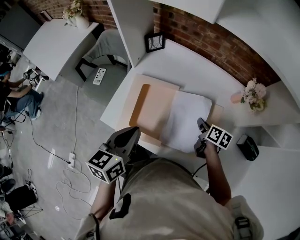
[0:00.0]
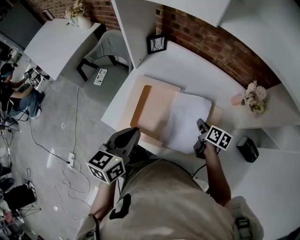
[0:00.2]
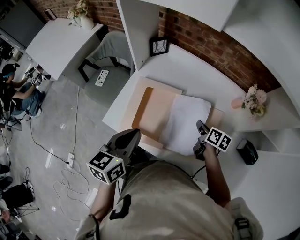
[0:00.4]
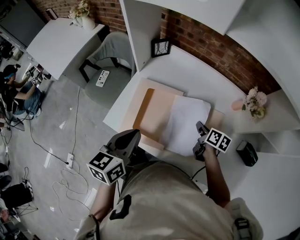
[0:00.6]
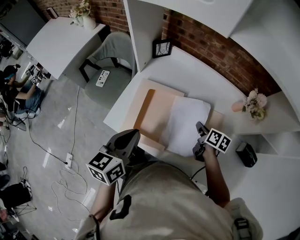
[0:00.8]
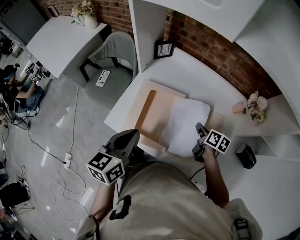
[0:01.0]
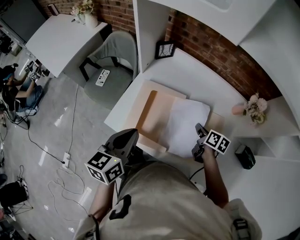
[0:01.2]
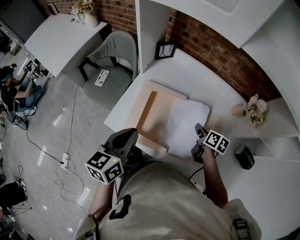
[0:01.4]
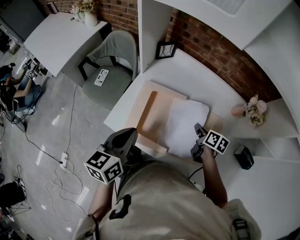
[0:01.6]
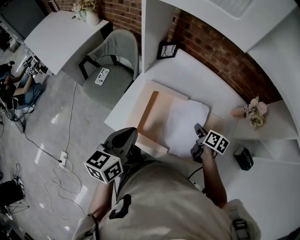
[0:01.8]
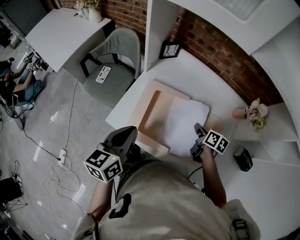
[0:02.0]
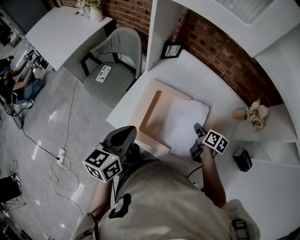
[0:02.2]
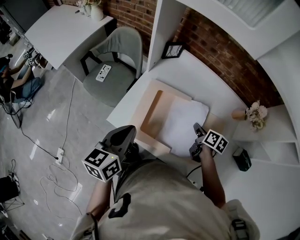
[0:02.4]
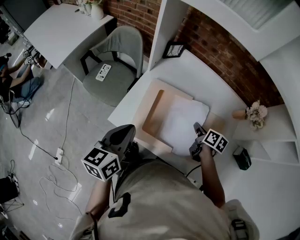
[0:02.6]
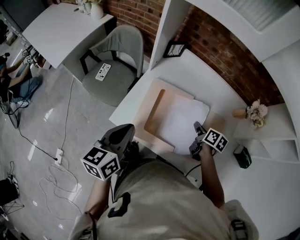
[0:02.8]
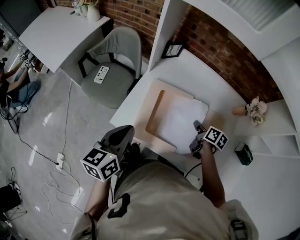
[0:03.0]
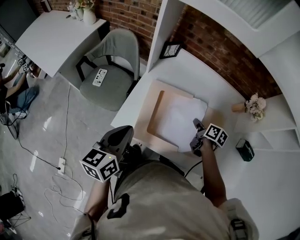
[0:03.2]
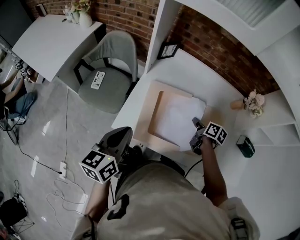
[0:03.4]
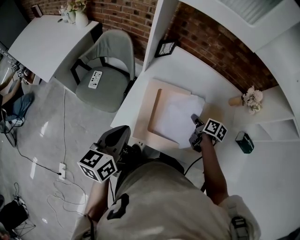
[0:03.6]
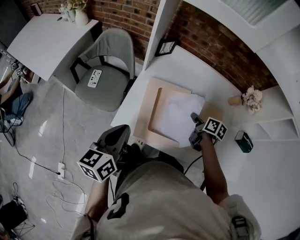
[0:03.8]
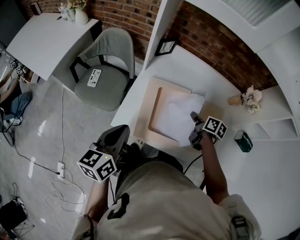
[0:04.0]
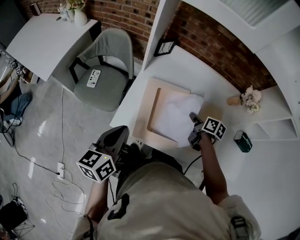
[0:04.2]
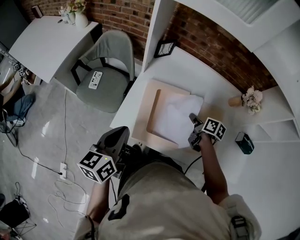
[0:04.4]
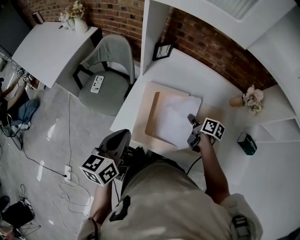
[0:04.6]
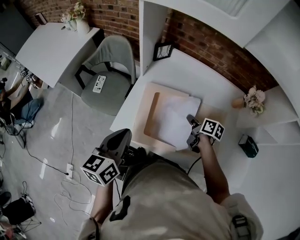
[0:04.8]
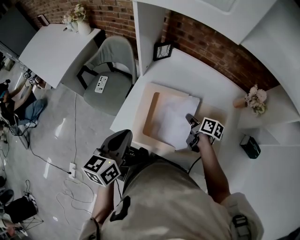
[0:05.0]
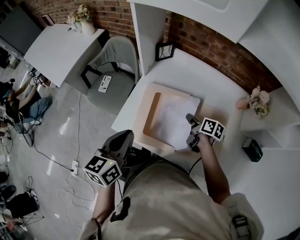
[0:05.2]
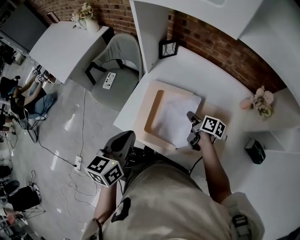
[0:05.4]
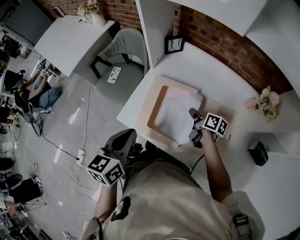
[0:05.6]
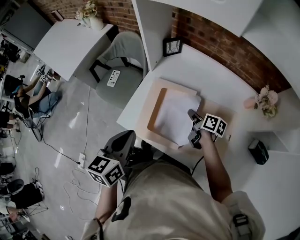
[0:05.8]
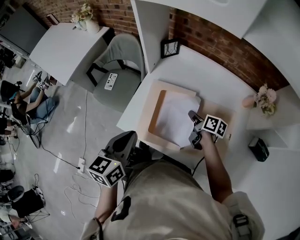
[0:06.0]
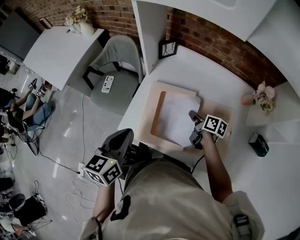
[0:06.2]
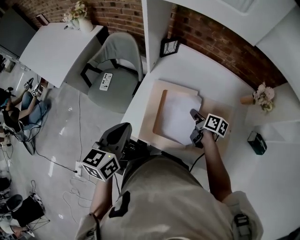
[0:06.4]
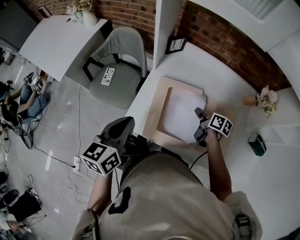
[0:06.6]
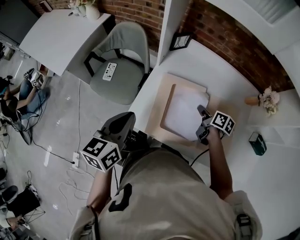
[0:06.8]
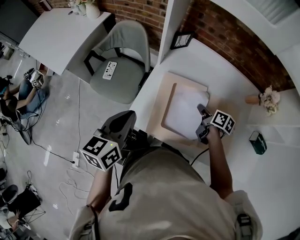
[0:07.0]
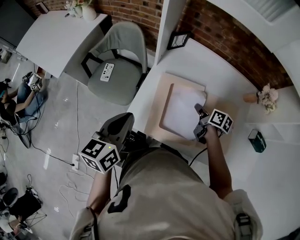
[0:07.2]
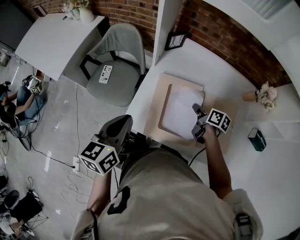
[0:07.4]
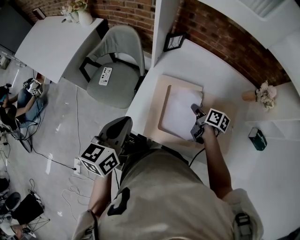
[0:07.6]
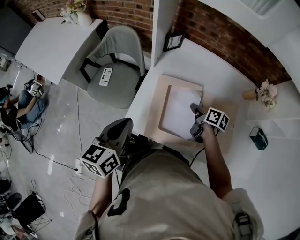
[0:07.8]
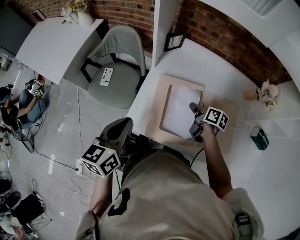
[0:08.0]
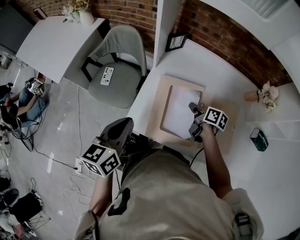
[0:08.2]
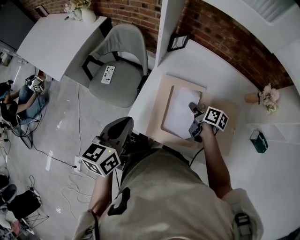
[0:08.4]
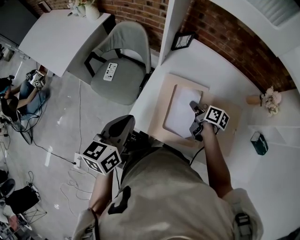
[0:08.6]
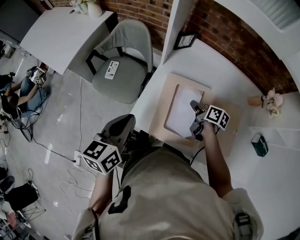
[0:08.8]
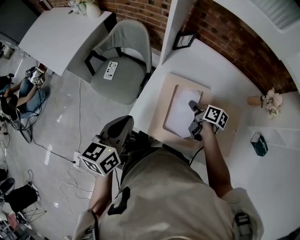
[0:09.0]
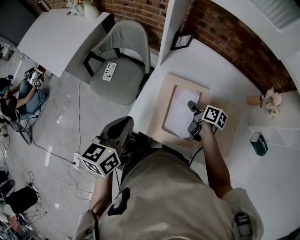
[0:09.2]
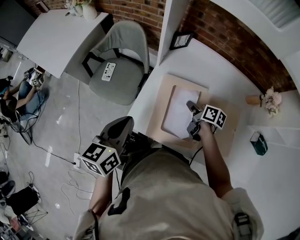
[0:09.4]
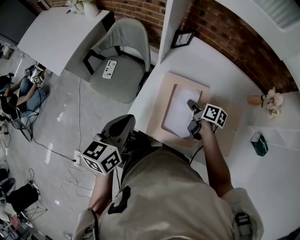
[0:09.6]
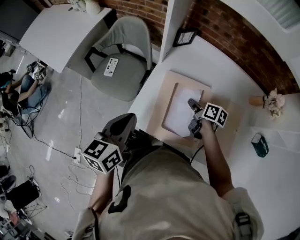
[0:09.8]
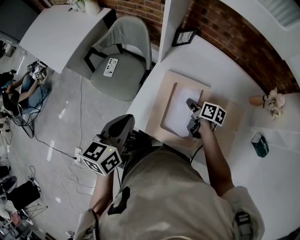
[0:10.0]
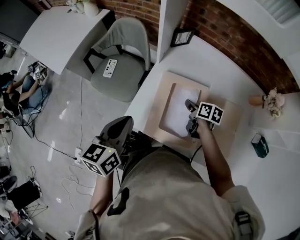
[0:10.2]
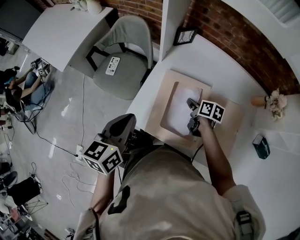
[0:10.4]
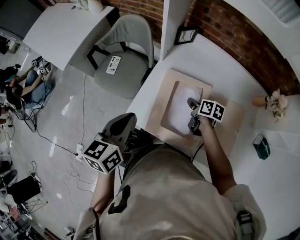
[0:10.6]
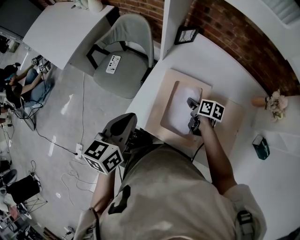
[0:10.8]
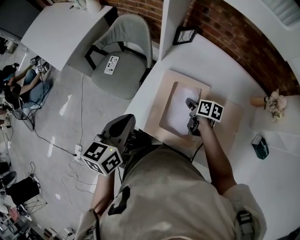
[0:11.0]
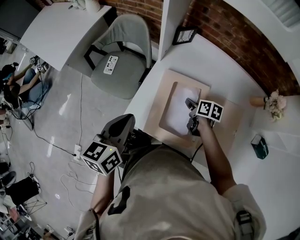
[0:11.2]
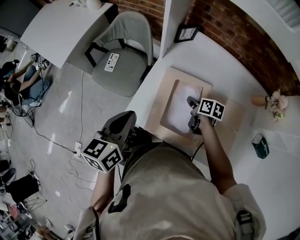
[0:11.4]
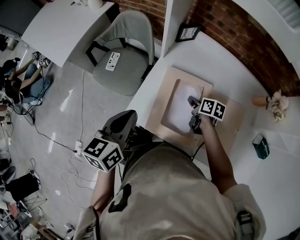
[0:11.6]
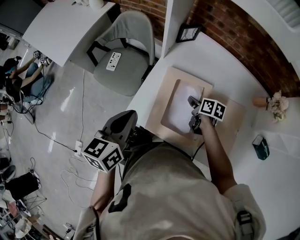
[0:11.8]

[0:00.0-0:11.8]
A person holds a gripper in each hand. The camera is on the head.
0:00.0 to 0:01.4: The left gripper travels to the left by about 5 cm.
0:01.4 to 0:03.0: The left gripper shifts about 10 cm to the left, while the right gripper shifts by approximately 5 cm.
0:03.0 to 0:04.4: The grippers stay close to where they were, moving slightly.
0:04.4 to 0:06.0: The left gripper shifts about 5 cm to the right.
0:06.0 to 0:07.4: The left gripper travels to the left by approximately 10 cm.
0:07.4 to 0:08.8: The grippers stay close to where they were, moving slightly.
0:08.8 to 0:10.4: There are only small adjustments of the grippers.
0:10.4 to 0:11.8: Neither gripper changes place.

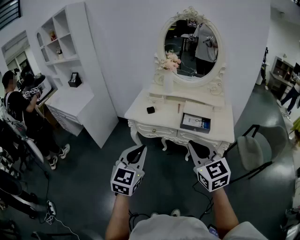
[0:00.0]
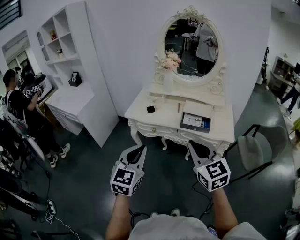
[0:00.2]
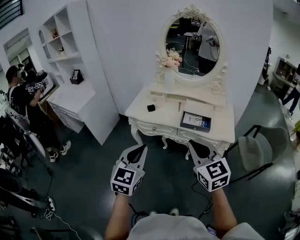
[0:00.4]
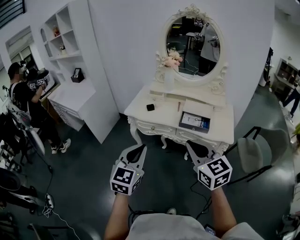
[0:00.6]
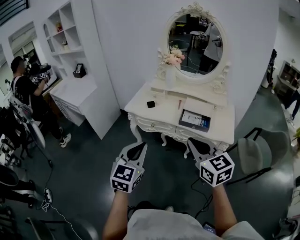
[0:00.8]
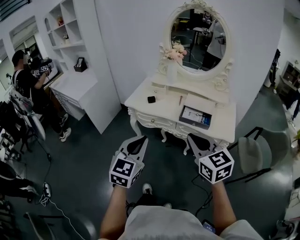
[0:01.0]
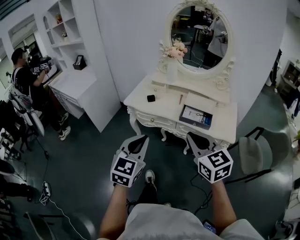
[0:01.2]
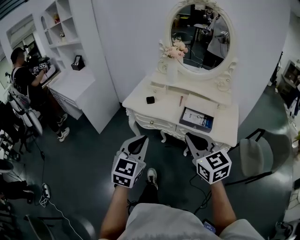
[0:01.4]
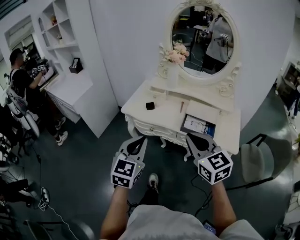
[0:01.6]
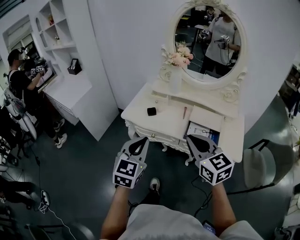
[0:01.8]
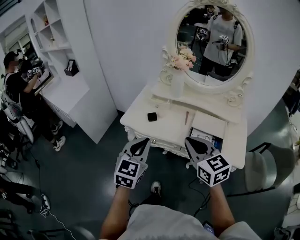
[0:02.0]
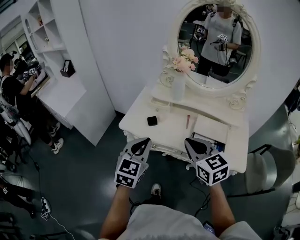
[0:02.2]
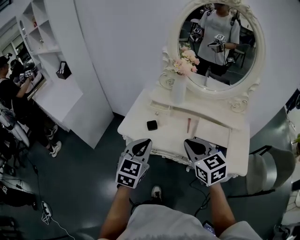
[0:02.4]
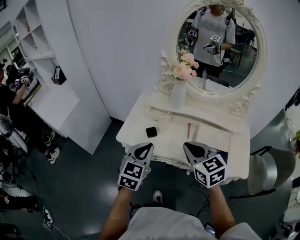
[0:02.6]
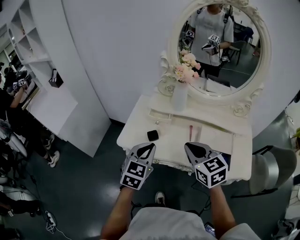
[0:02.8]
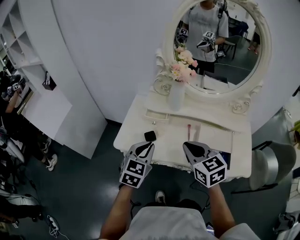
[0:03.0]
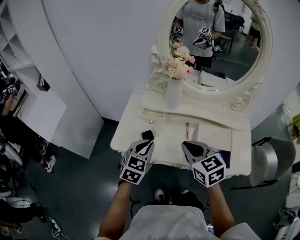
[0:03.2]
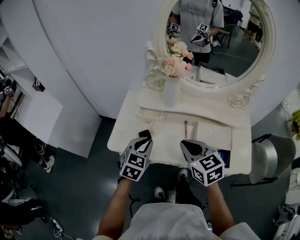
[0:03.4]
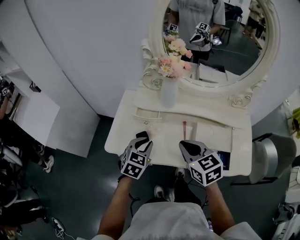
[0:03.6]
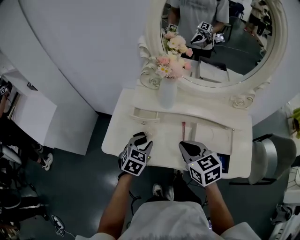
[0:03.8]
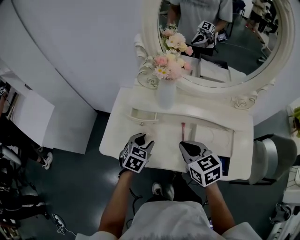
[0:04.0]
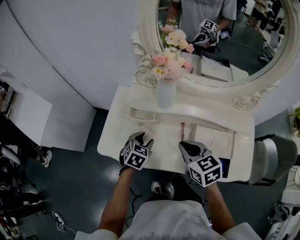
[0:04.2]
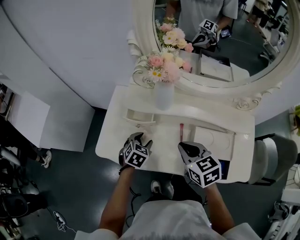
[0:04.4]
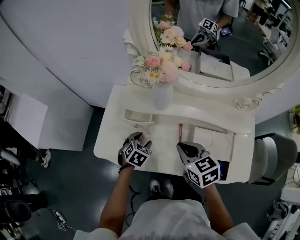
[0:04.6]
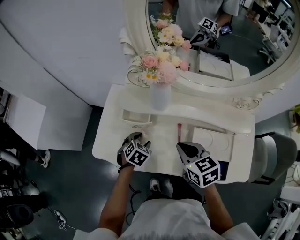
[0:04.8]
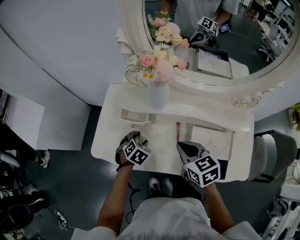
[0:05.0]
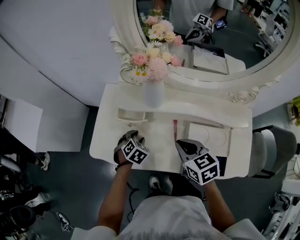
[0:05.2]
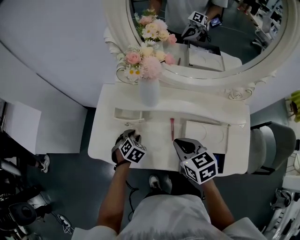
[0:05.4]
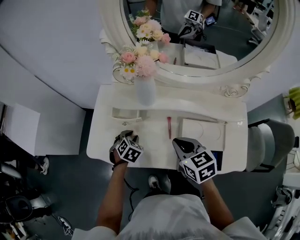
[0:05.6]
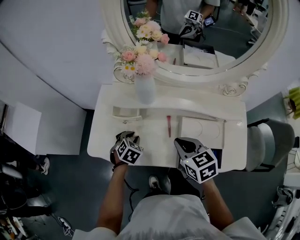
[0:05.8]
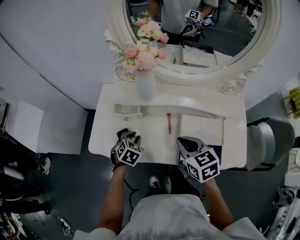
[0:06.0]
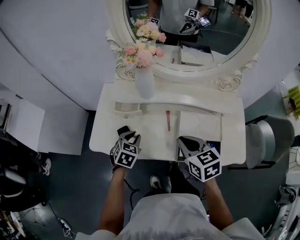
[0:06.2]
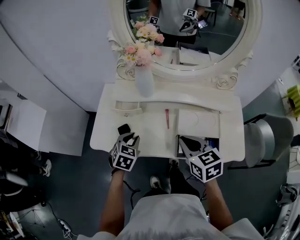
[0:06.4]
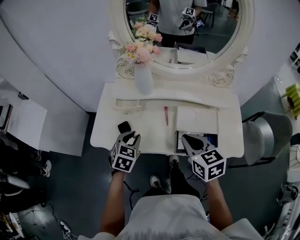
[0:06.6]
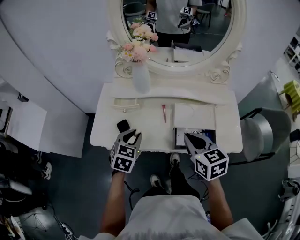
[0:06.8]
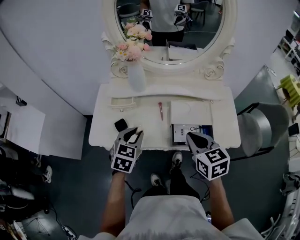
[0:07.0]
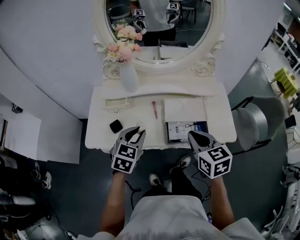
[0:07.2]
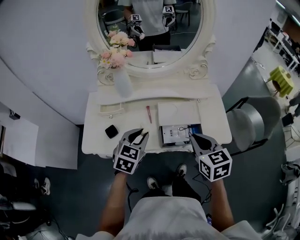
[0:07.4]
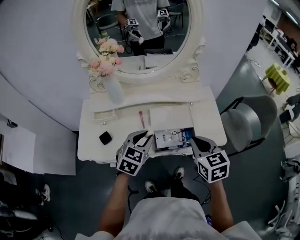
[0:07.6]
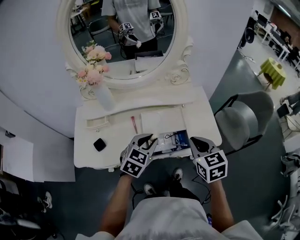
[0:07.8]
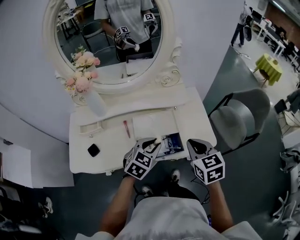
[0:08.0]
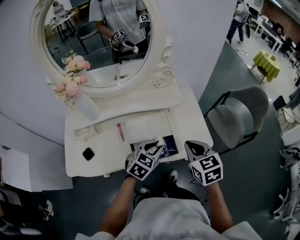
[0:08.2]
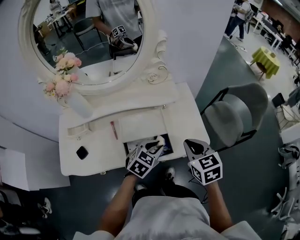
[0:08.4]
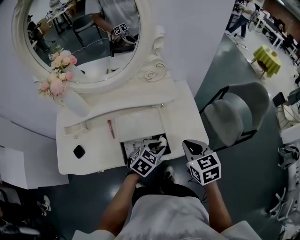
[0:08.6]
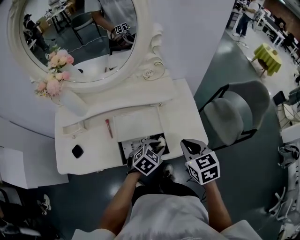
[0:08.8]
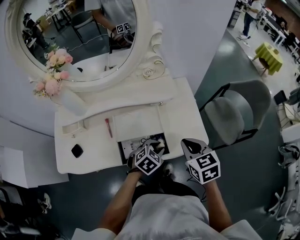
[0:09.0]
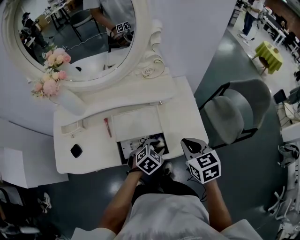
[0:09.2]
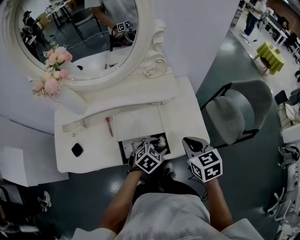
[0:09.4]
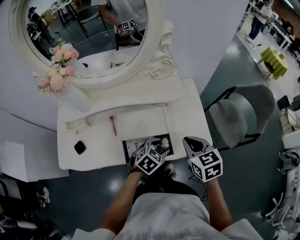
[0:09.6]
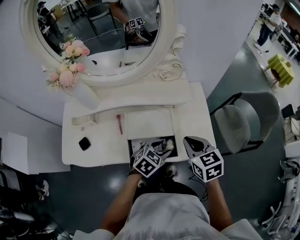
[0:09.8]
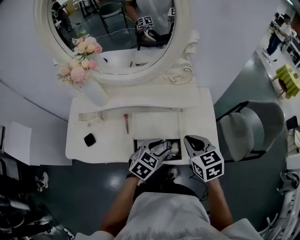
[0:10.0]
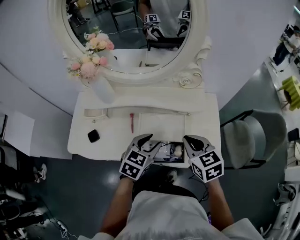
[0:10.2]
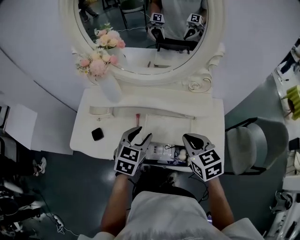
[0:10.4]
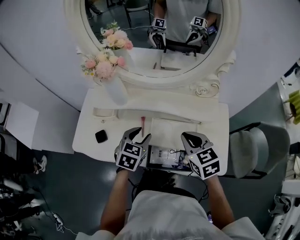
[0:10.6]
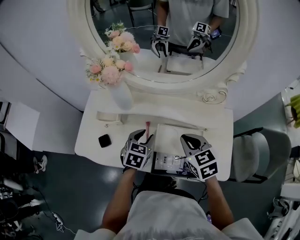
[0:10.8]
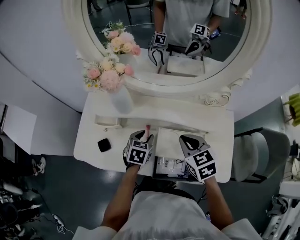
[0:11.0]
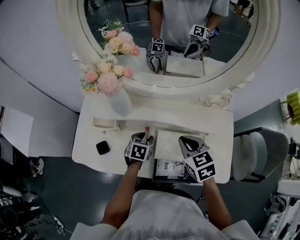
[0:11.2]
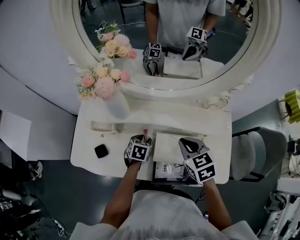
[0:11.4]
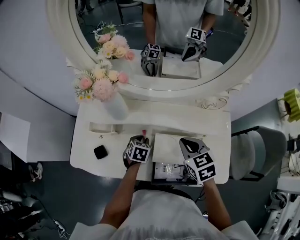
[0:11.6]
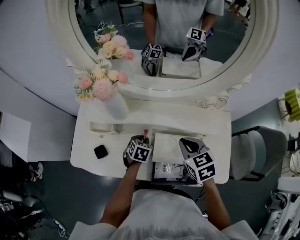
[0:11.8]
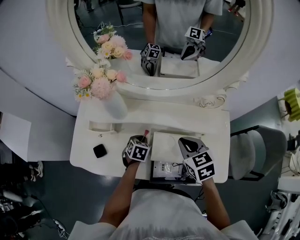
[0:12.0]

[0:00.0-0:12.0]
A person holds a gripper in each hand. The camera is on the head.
0:00.0 to 0:01.6: The two grippers go about 10 cm forward.
0:01.6 to 0:03.0: The two grippers go approximately 30 cm forward.
0:03.0 to 0:04.4: The left gripper shifts about 25 cm downward and forward, swivels approximately 30 degrees, and opens its fingers. Meanwhile the right gripper travels downward, forward and to the right by roughly 15 cm.
0:04.4 to 0:06.0: The right gripper ends up some 5 cm from where it was.
0:06.0 to 0:07.6: The right gripper shifts by about 20 cm, and swivels roughly 20 degrees; the left gripper ends up about 25 cm from where it was, and turns by about 30 degrees.
0:07.6 to 0:09.0: The left gripper heads to the right and downward, covering some 25 cm, and turns by roughly 30 degrees. Meanwhile the right gripper shifts some 15 cm to the right, downward and forward.
0:09.0 to 0:10.4: The right gripper ends up some 15 cm from where it was, and swivels roughly 20 degrees. The left gripper changes place by roughly 25 cm, and swivels approximately 40 degrees.
0:10.4 to 0:12.0: The left gripper goes some 20 cm downward and forward, changes its angle by some 30 degrees, and closes up. Meanwhile the right gripper heads forward and to the left, covering about 10 cm.
